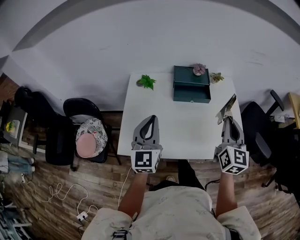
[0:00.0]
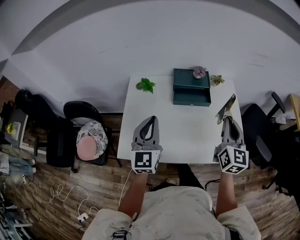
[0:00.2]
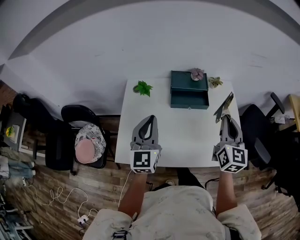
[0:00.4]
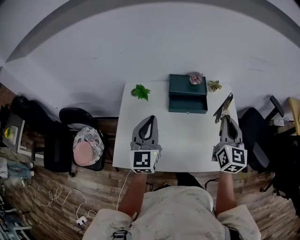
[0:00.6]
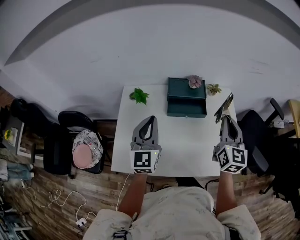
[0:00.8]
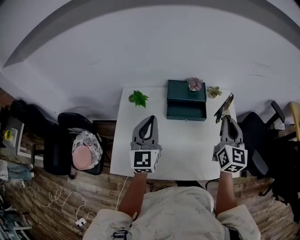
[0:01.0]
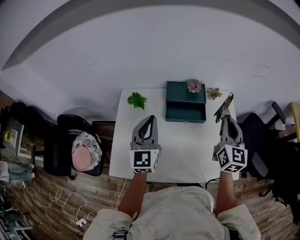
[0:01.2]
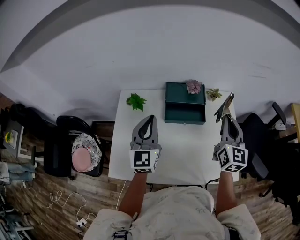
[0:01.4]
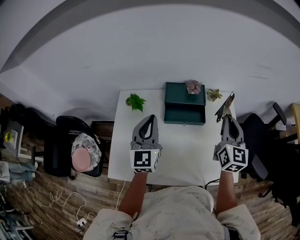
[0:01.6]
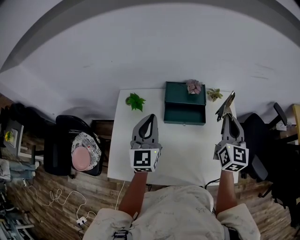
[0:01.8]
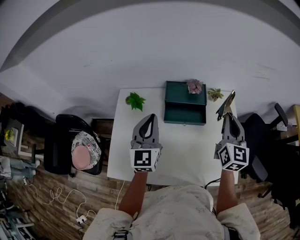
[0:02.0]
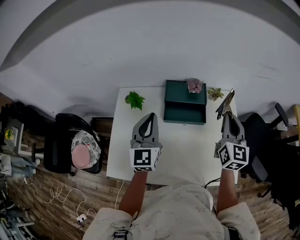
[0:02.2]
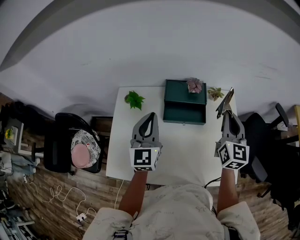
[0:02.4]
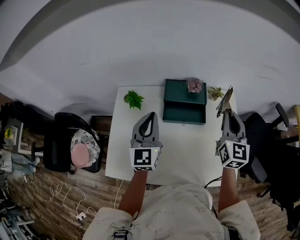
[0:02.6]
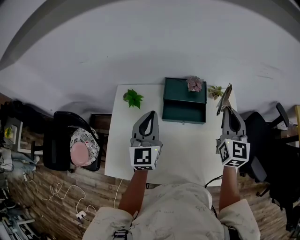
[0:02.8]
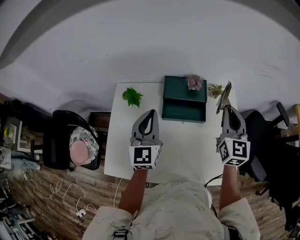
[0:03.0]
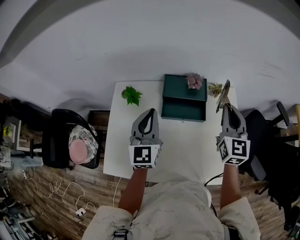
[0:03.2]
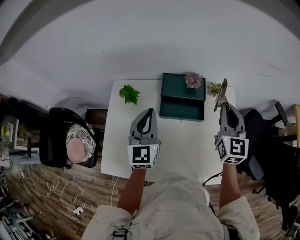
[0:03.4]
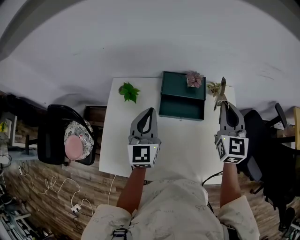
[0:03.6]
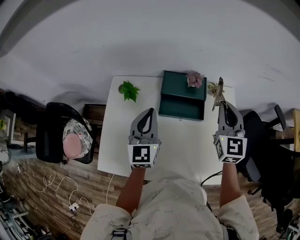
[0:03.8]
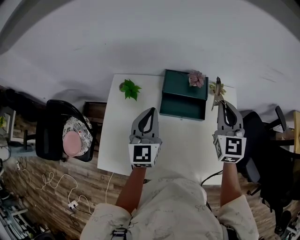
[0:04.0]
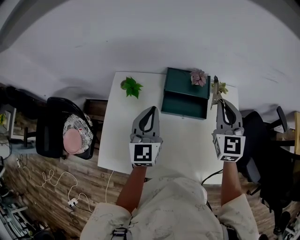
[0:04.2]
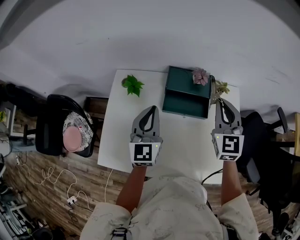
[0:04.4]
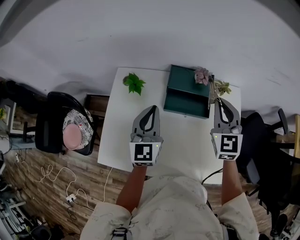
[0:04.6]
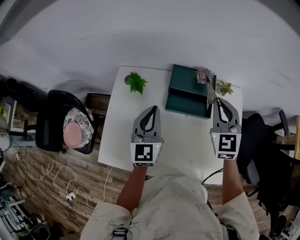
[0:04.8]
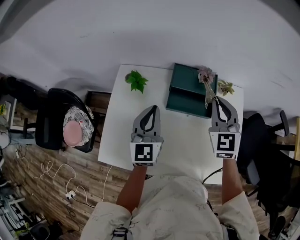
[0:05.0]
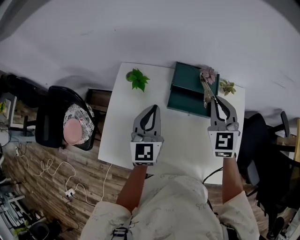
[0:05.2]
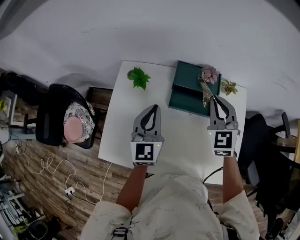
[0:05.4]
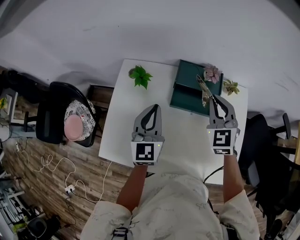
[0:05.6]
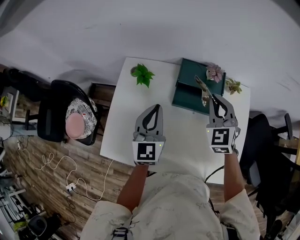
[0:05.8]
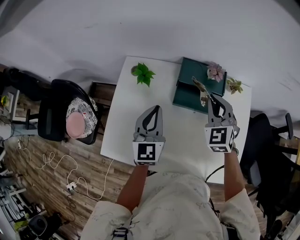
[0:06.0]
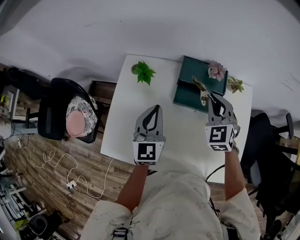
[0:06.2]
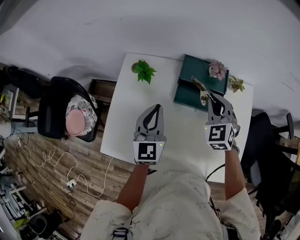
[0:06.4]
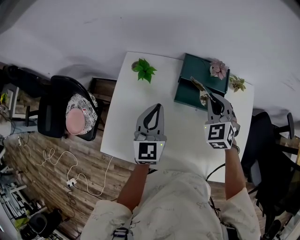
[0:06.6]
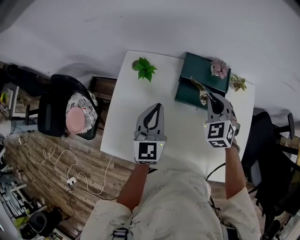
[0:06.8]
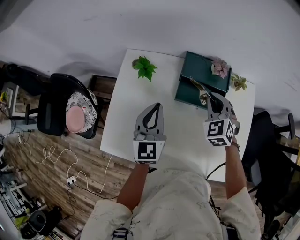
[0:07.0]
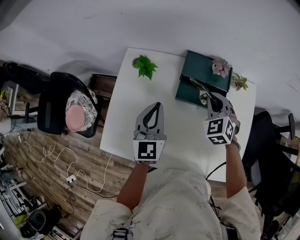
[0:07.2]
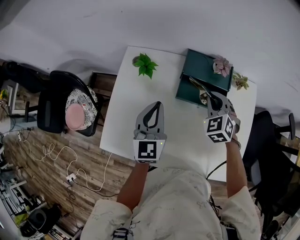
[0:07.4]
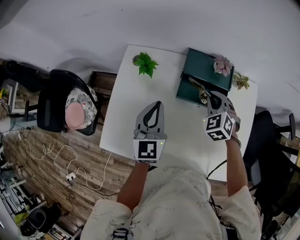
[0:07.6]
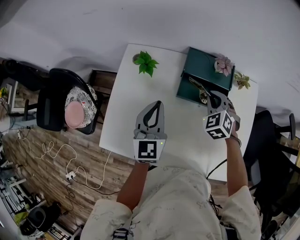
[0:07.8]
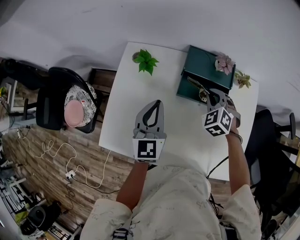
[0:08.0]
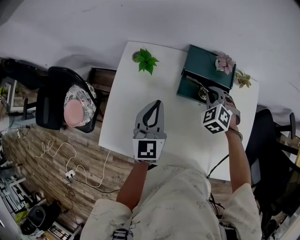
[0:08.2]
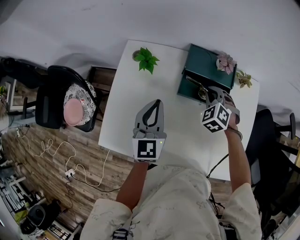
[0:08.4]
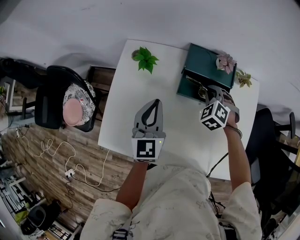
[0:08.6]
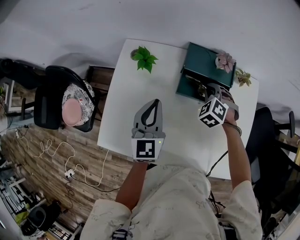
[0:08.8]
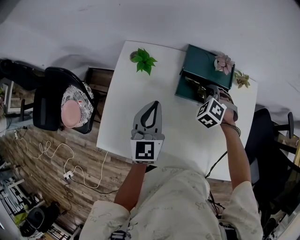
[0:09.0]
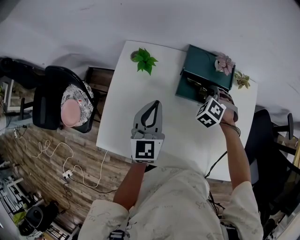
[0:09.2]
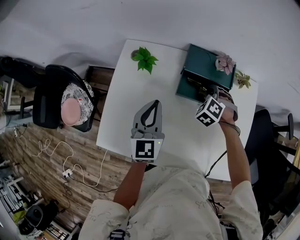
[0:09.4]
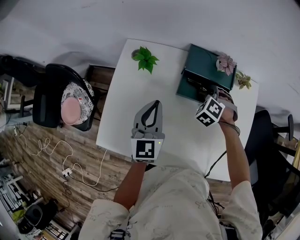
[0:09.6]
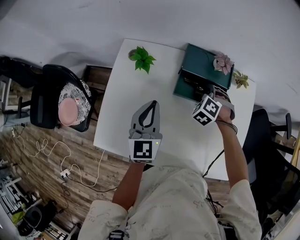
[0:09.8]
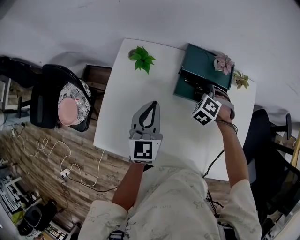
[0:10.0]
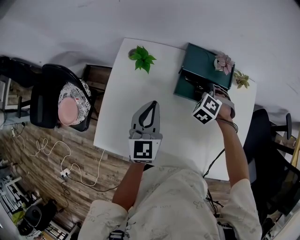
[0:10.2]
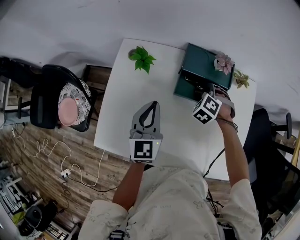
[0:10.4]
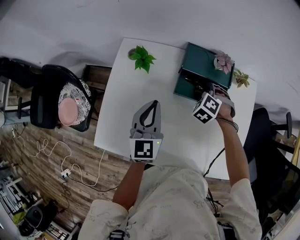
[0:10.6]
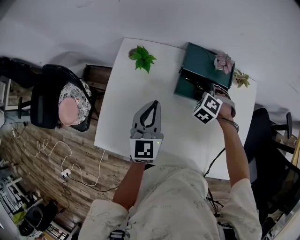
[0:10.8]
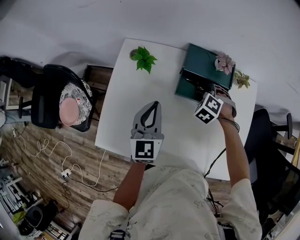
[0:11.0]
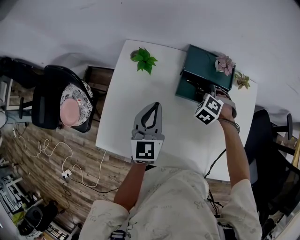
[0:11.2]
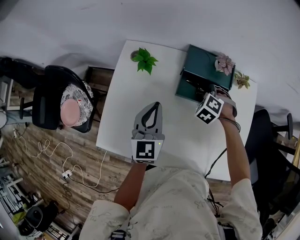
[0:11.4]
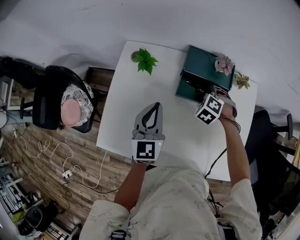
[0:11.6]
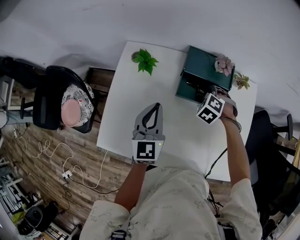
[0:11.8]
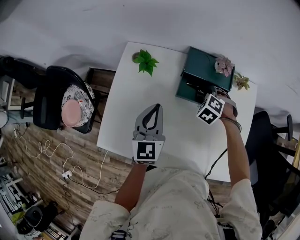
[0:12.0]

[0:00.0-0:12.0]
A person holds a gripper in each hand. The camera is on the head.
0.0 to 1.6 s: Both grippers move forward, some 15 cm.
1.6 to 3.0 s: The right gripper is displaced forward by about 5 cm.
3.0 to 4.4 s: The right gripper is displaced to the left by about 5 cm.
4.4 to 6.0 s: The right gripper is displaced to the left and downward by approximately 10 cm, and rotates approximately 20 degrees.
6.0 to 7.6 s: The right gripper travels downward by some 10 cm.
7.6 to 9.0 s: The right gripper moves downward, roughly 5 cm, and rotates approximately 20 degrees.
9.0 to 12.0 s: The grippers make only small movements.

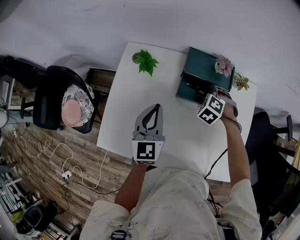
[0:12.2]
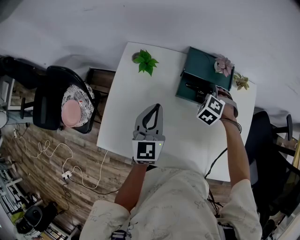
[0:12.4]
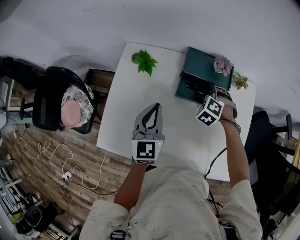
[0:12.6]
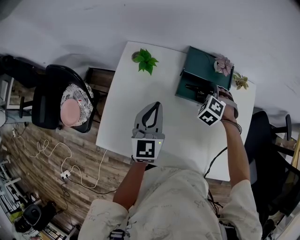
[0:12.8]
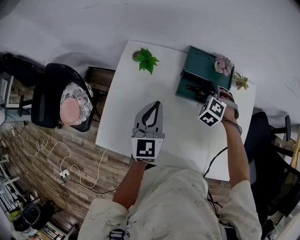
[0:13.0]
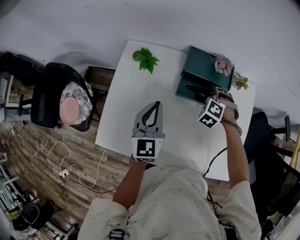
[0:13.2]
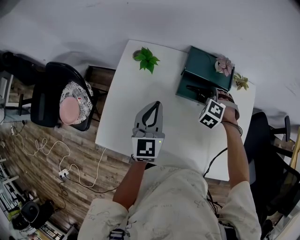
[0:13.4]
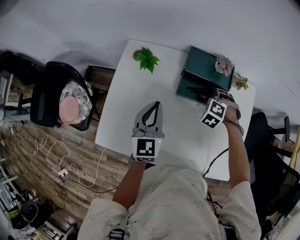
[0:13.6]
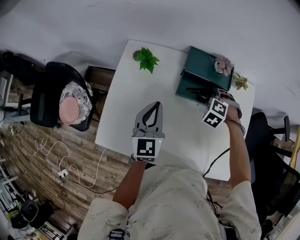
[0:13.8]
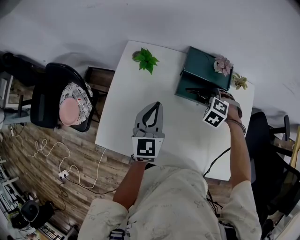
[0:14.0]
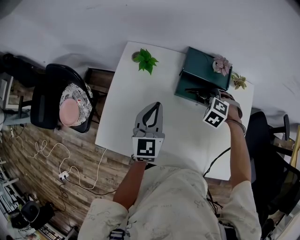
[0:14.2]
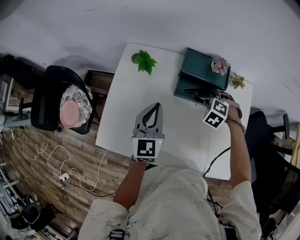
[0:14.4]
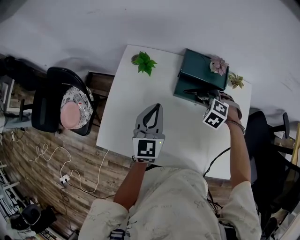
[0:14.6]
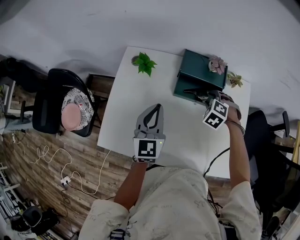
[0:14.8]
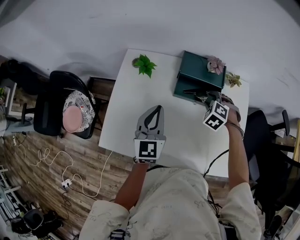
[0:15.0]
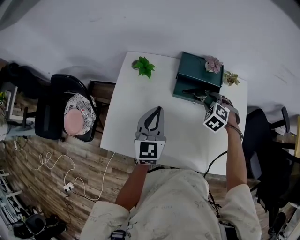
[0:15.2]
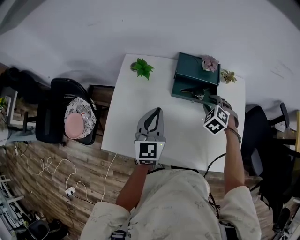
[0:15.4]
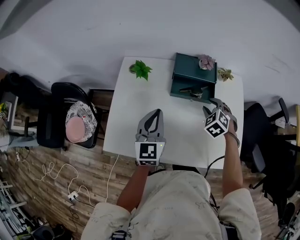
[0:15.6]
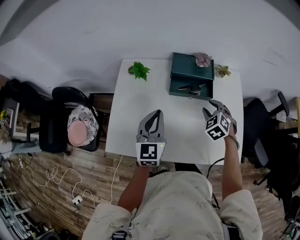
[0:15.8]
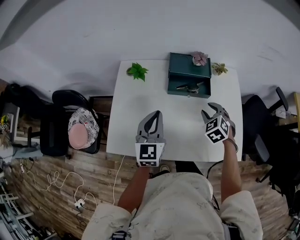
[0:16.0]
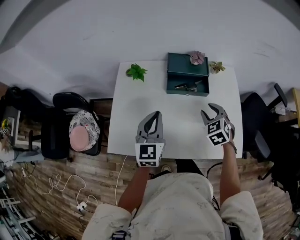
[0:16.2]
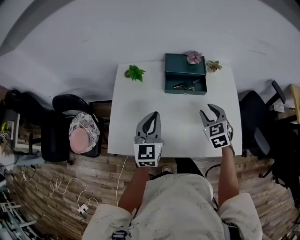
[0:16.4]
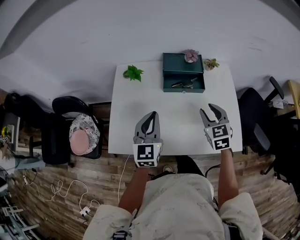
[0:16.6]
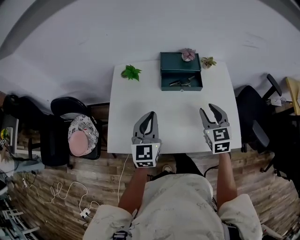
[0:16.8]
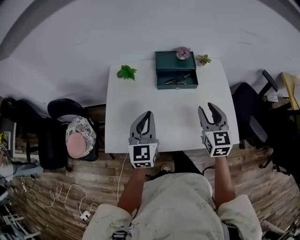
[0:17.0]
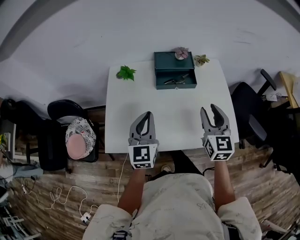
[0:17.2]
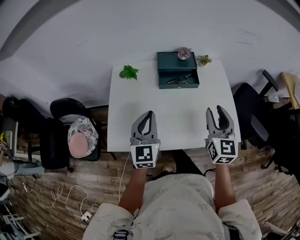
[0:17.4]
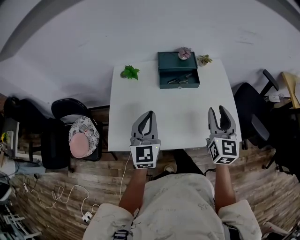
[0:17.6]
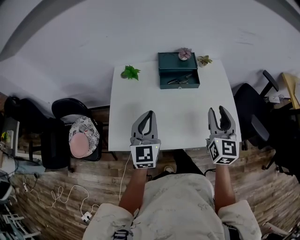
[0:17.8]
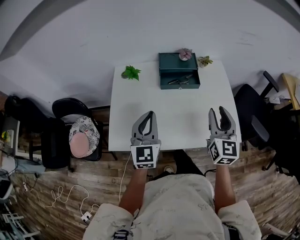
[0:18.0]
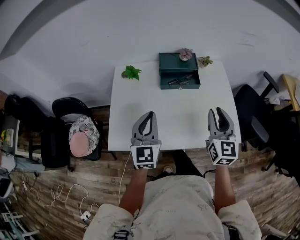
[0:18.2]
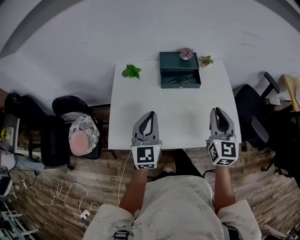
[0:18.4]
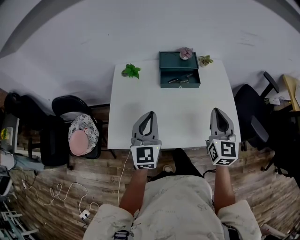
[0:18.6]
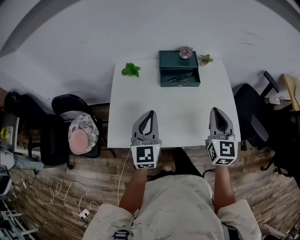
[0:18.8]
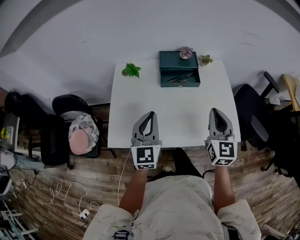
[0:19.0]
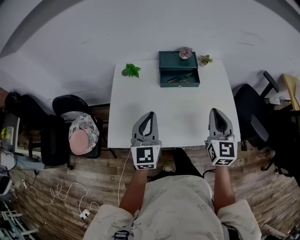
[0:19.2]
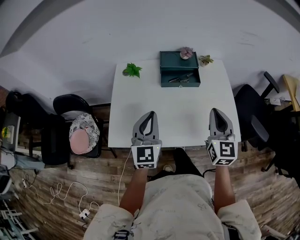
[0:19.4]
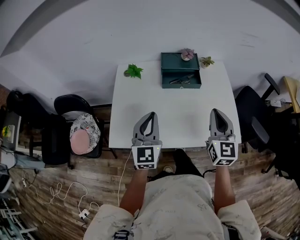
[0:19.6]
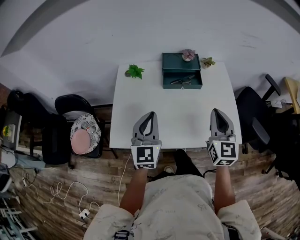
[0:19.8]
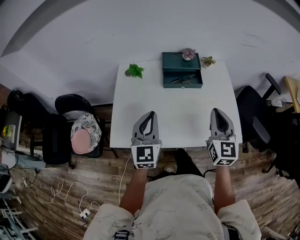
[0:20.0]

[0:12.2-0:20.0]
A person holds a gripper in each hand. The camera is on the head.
12.2 to 13.8 s: There are only small adjustments of the grippers.
13.8 to 15.4 s: The right gripper travels backward and upward by approximately 10 cm, and rotates some 20 degrees. The left gripper ends up approximately 5 cm from where it was.
15.4 to 16.8 s: The right gripper shifts some 20 cm backward and upward, and rolls clockwise, seen from behind, by roughly 40 degrees; the left gripper goes about 10 cm backward.
16.8 to 18.4 s: The right gripper moves backward and upward, some 10 cm, turns by roughly 20 degrees, and closes up.
18.4 to 20.0 s: The two grippers keep their place.

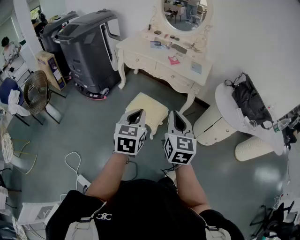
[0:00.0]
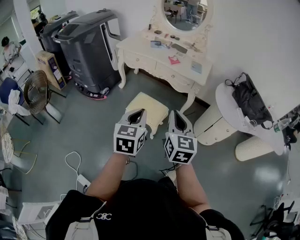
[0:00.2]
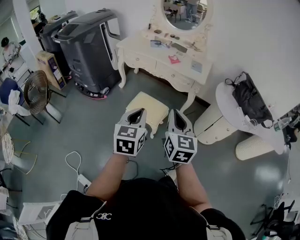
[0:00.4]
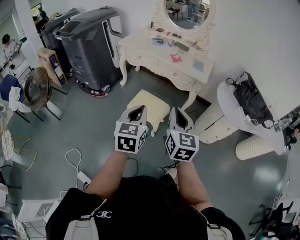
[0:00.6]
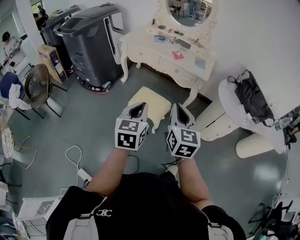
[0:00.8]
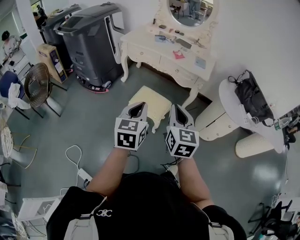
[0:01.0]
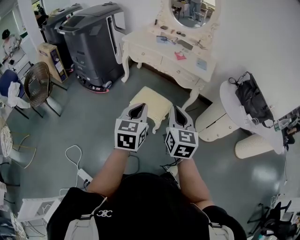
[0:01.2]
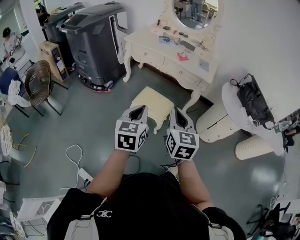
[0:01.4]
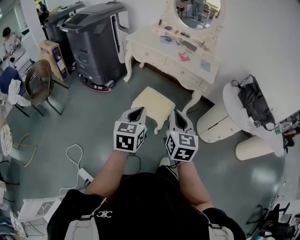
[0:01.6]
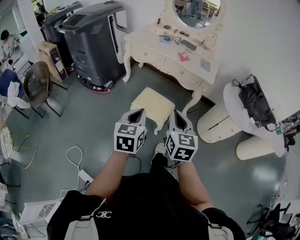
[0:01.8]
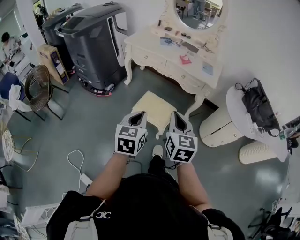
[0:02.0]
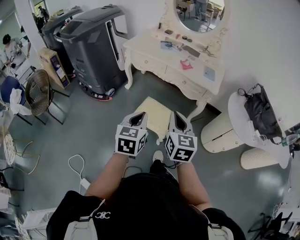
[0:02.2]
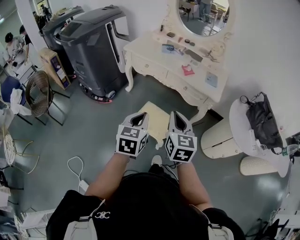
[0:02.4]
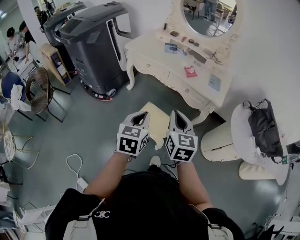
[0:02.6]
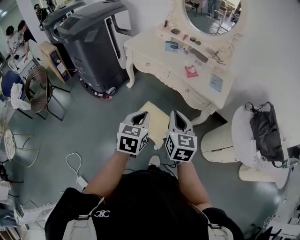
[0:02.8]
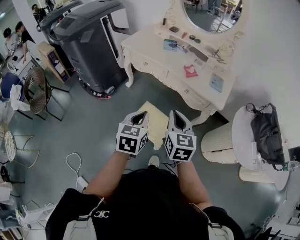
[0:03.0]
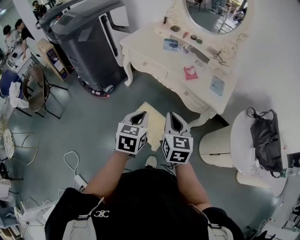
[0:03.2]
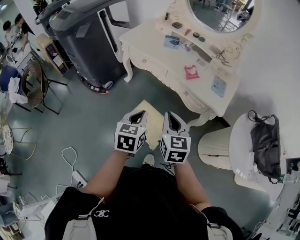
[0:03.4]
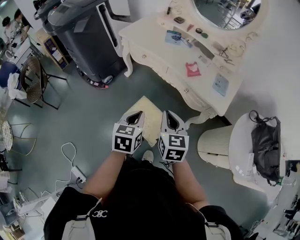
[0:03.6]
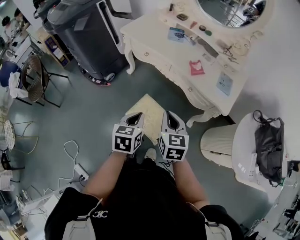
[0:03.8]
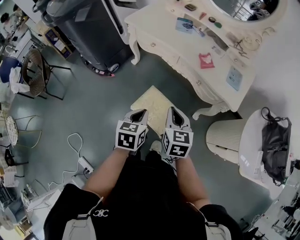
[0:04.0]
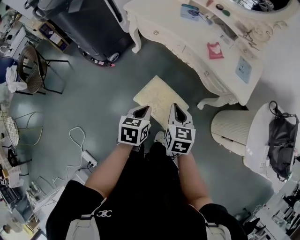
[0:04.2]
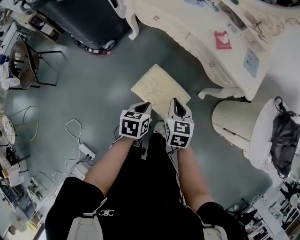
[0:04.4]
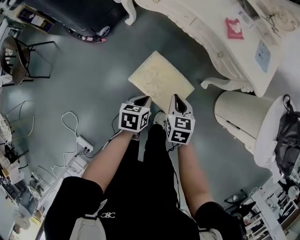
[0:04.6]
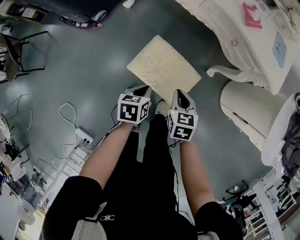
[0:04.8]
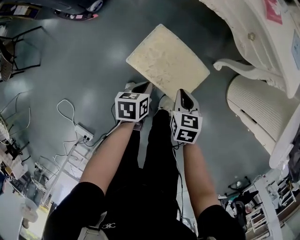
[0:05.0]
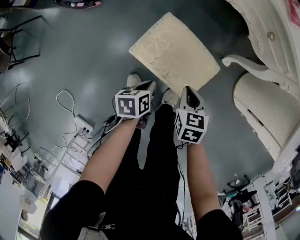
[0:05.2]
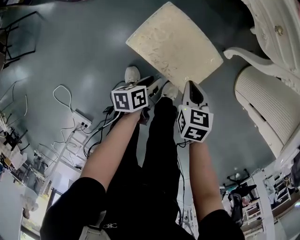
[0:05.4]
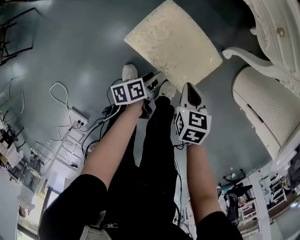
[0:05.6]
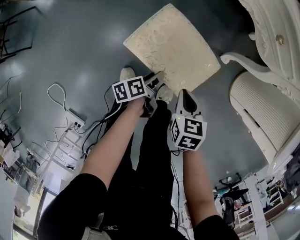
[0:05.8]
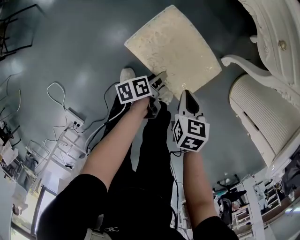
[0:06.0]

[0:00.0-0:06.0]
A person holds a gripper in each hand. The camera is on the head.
0.0 to 1.6 s: Both grippers move to the left, about 5 cm.
1.6 to 3.0 s: Both grippers travel together forward, about 30 cm.
3.0 to 4.4 s: The two grippers go approximately 25 cm downward. The left gripper swivels roughly 30 degrees, while the right gripper swivels roughly 20 degrees.
4.4 to 6.0 s: The grippers both shift downward by approximately 30 cm. The left gripper rolls counterclockwise, seen from behind, by about 50 degrees, and opens its fingers. The right gripper swivels approximately 20 degrees.
